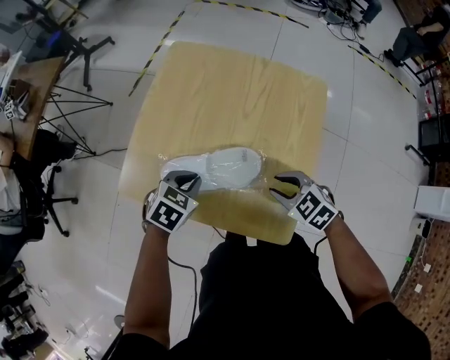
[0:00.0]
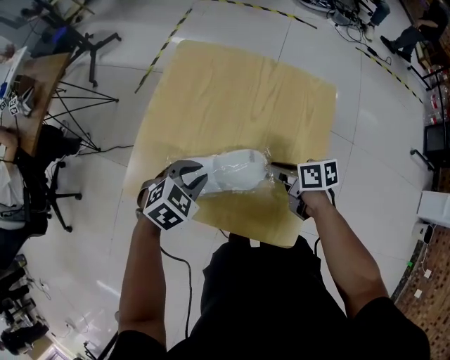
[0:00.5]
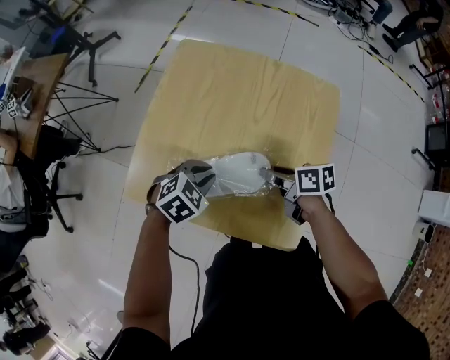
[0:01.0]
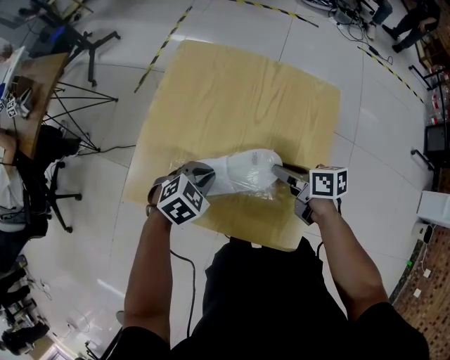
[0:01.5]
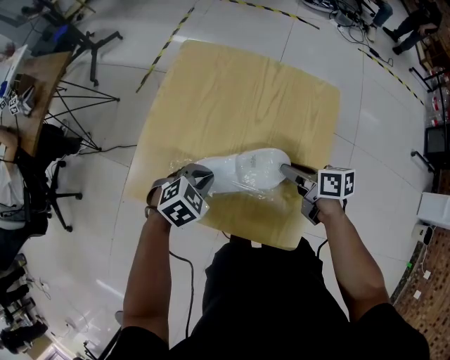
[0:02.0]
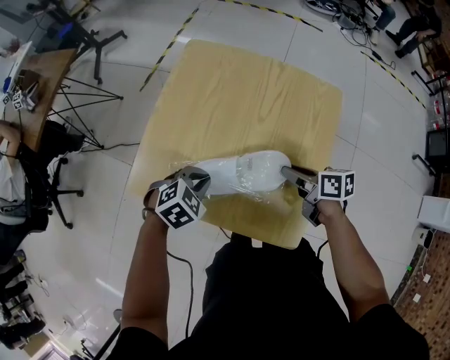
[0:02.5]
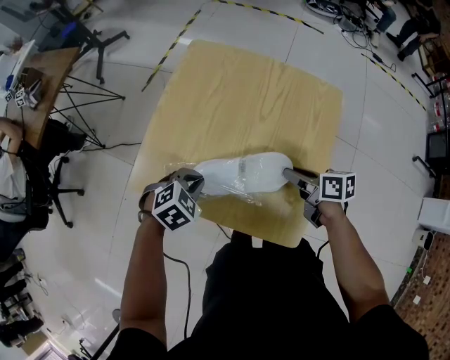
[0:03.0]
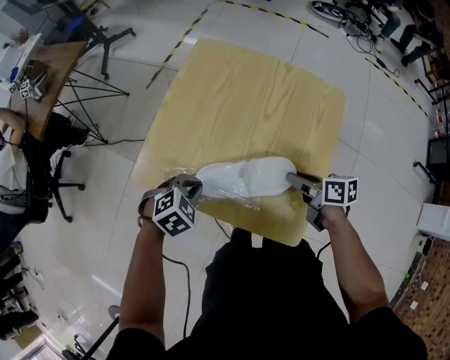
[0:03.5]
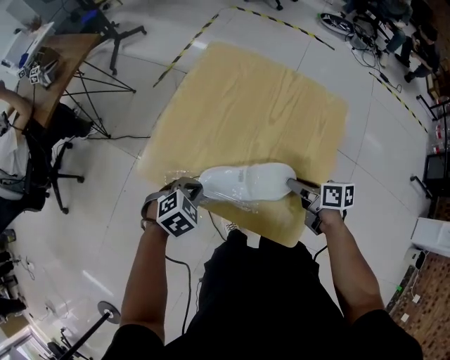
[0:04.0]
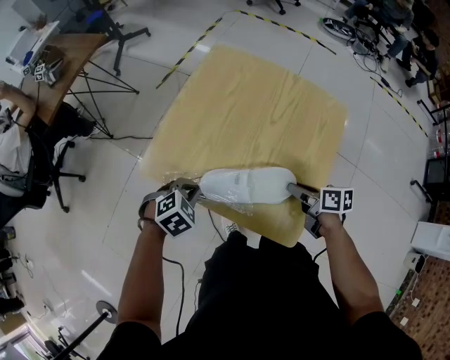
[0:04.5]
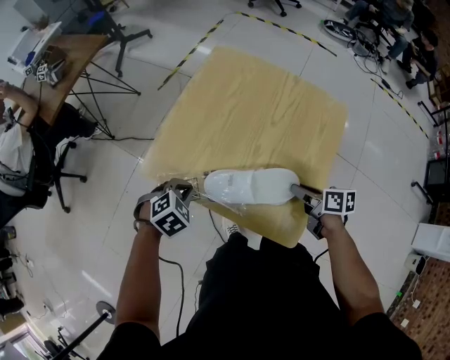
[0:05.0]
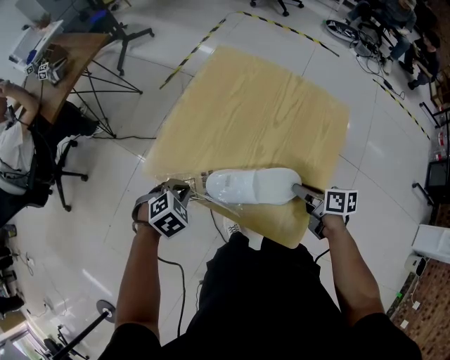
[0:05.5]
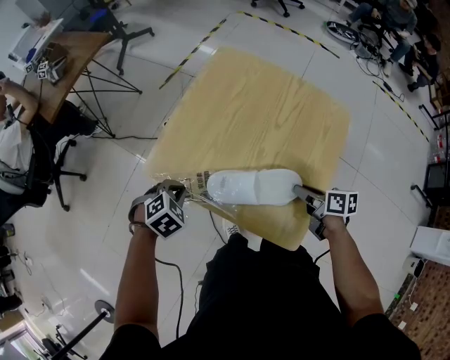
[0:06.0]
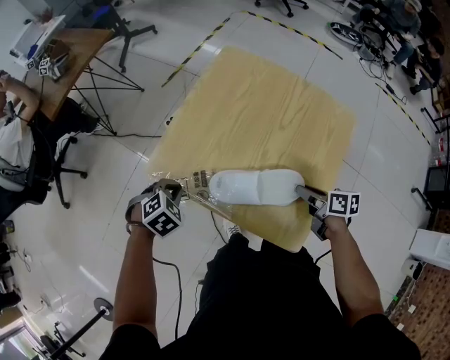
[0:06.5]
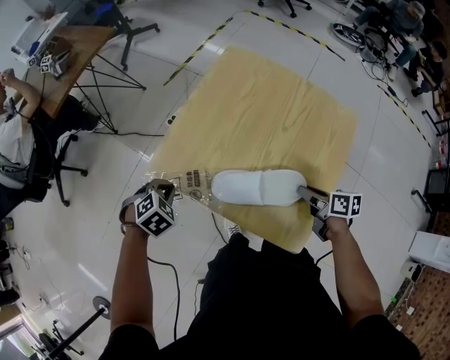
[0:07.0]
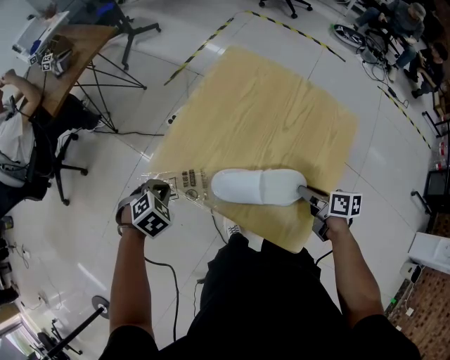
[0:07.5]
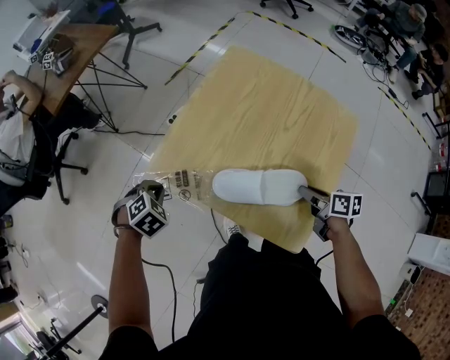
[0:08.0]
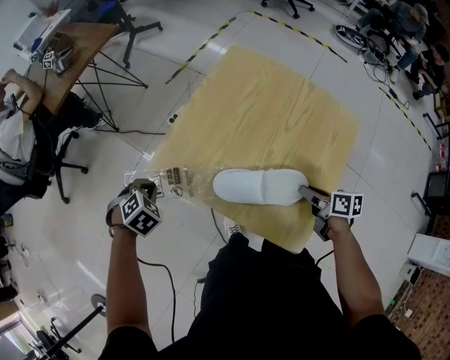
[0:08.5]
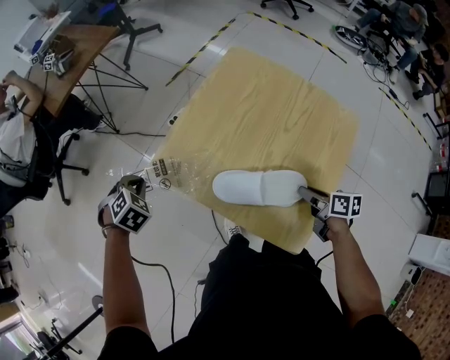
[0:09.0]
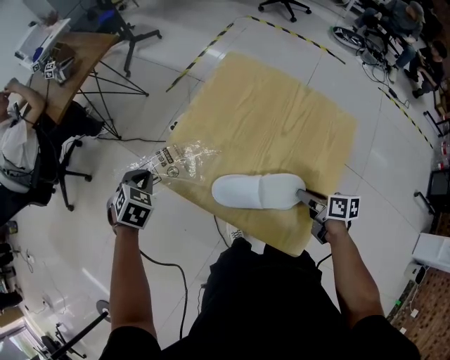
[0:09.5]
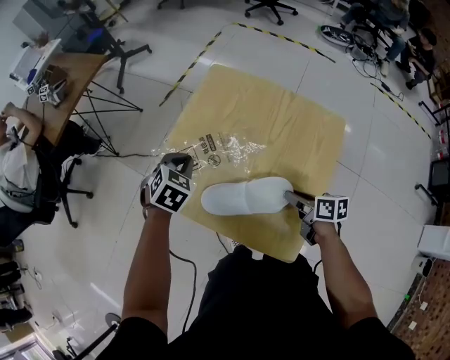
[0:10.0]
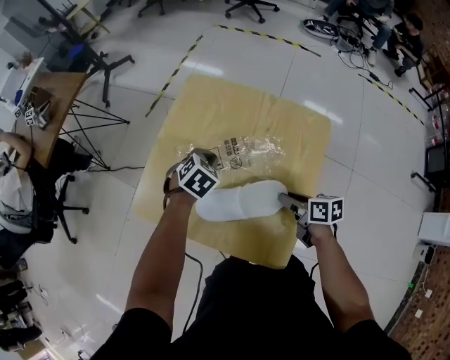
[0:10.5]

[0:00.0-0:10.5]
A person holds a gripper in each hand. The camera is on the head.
0:00.0 to 0:02.0: The right gripper moves forward, about 10 cm, and twists approximately 60 degrees clockwise, seen from behind; the left gripper turns by some 20 degrees.
0:02.0 to 0:04.0: The left gripper goes some 10 cm backward and to the left. Meanwhile the right gripper changes place by roughly 5 cm.
0:04.0 to 0:06.5: The left gripper moves to the left, about 10 cm.
0:06.5 to 0:08.5: The left gripper travels to the left by some 10 cm.
0:08.5 to 0:10.5: The left gripper moves roughly 35 cm, and turns by roughly 20 degrees.

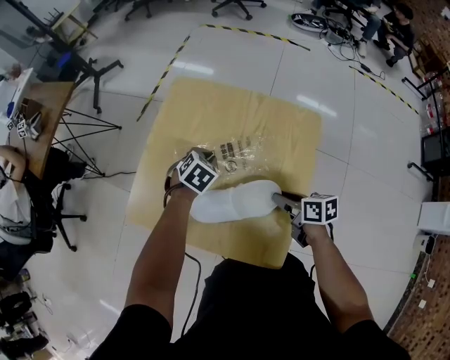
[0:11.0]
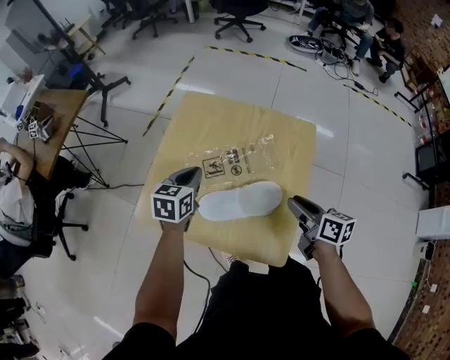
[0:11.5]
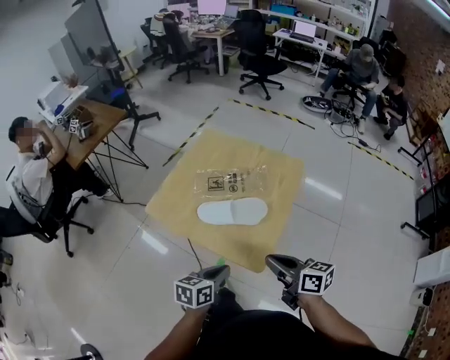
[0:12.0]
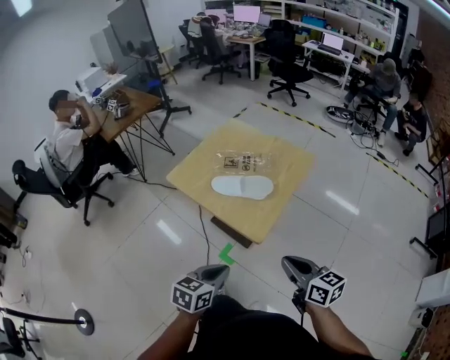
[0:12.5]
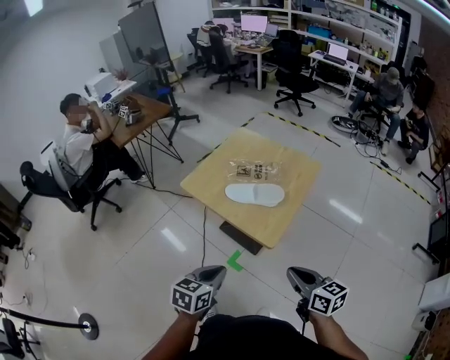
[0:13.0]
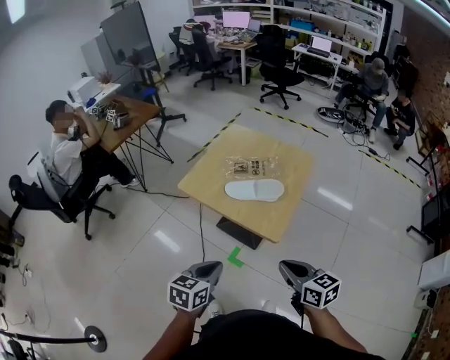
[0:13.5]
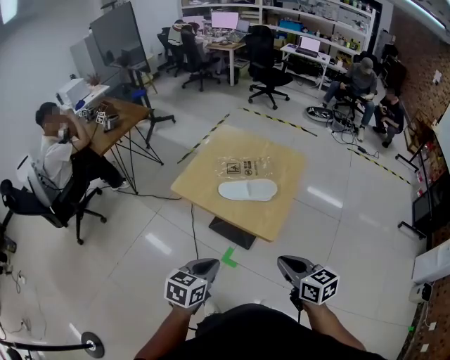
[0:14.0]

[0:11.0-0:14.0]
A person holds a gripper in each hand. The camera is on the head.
0:11.0 to 0:12.5: The left gripper heads backward, covering about 50 cm, and points its fingers approximately 30 degrees further upward, while the right gripper travels backward and upward by roughly 40 cm, turns by approximately 30 degrees, and closes its fingers.
0:12.5 to 0:14.0: The grippers both shift to the left by approximately 10 cm.

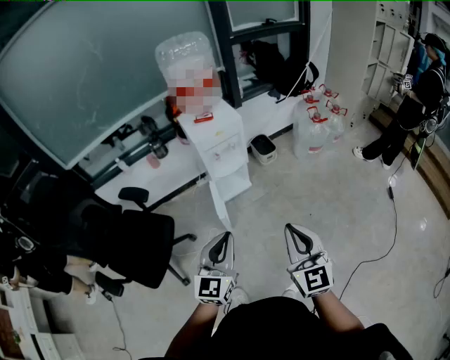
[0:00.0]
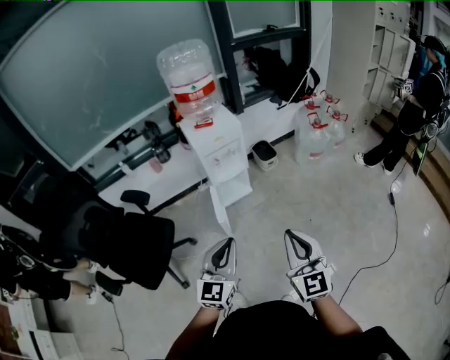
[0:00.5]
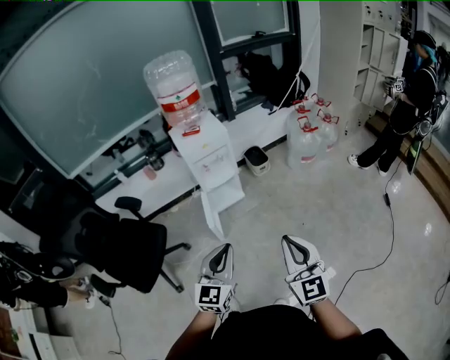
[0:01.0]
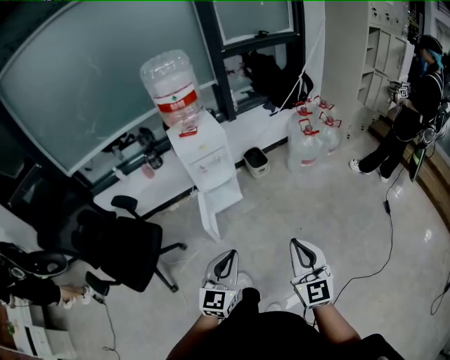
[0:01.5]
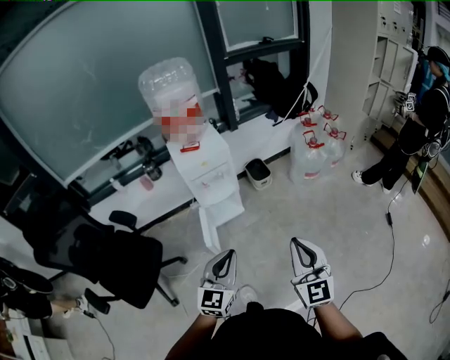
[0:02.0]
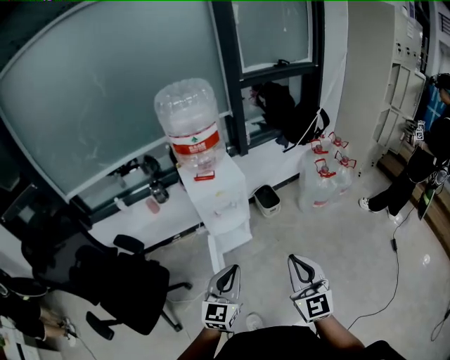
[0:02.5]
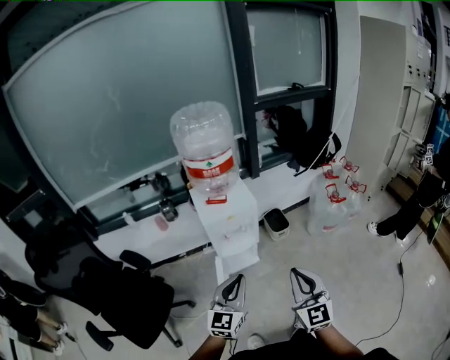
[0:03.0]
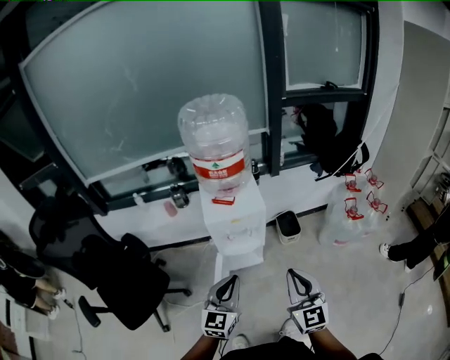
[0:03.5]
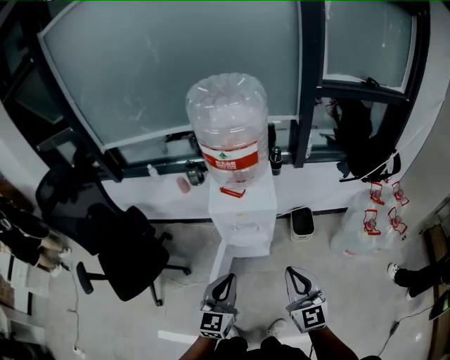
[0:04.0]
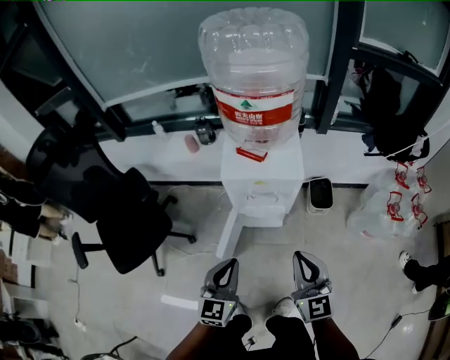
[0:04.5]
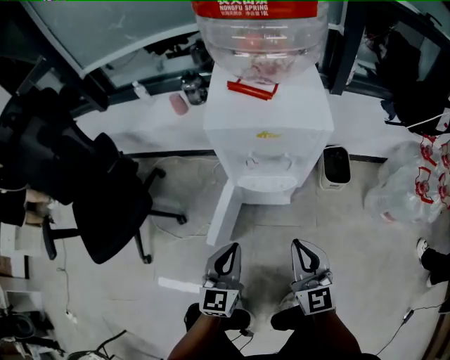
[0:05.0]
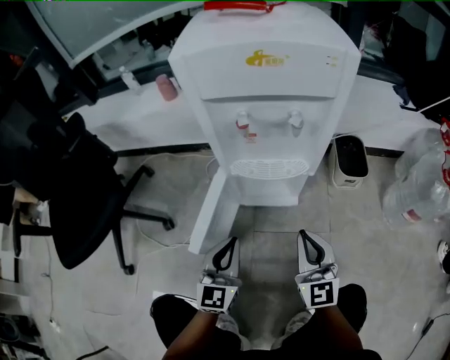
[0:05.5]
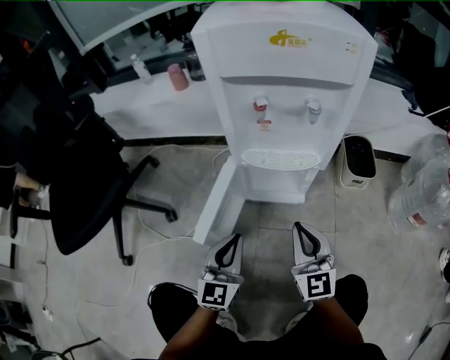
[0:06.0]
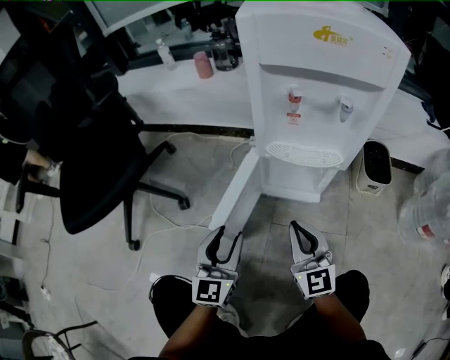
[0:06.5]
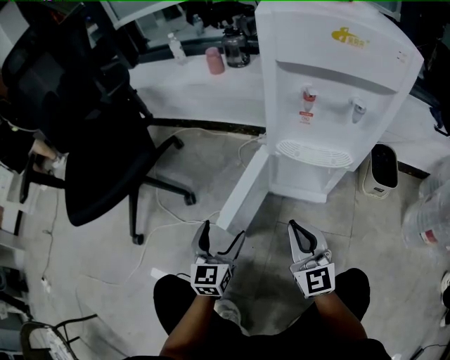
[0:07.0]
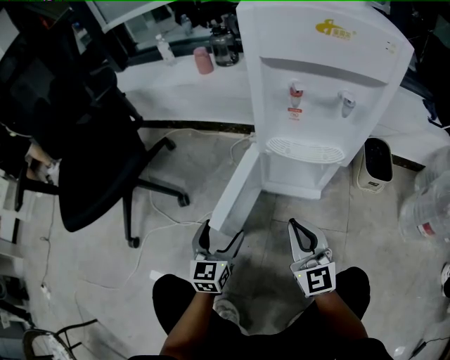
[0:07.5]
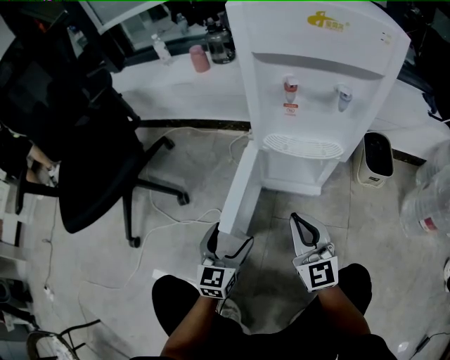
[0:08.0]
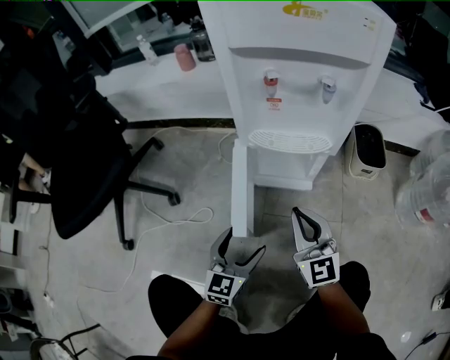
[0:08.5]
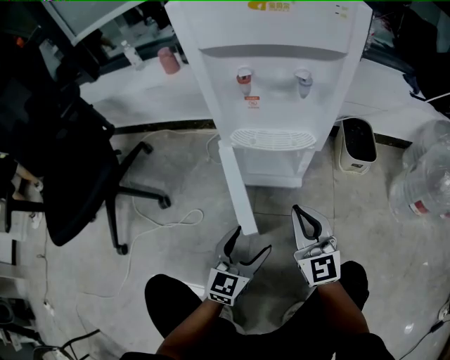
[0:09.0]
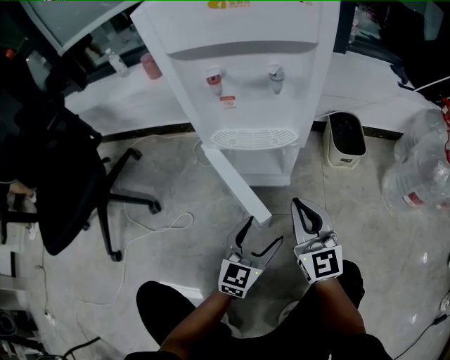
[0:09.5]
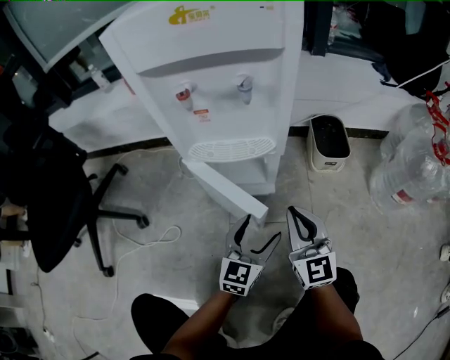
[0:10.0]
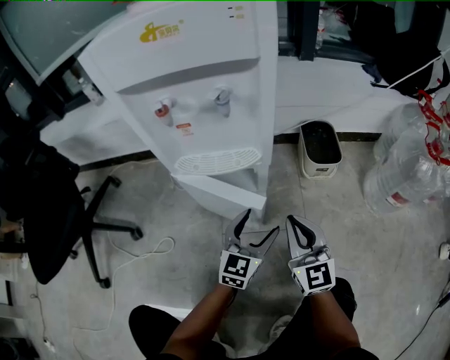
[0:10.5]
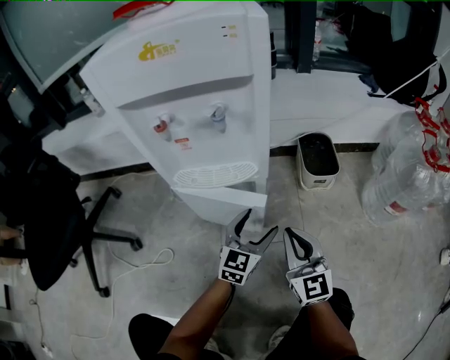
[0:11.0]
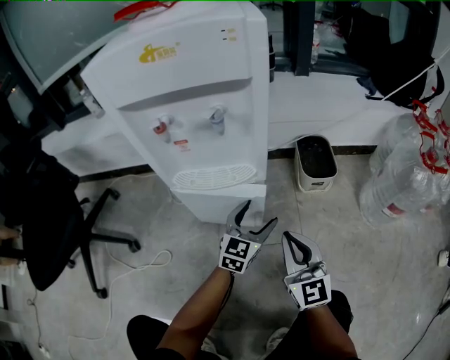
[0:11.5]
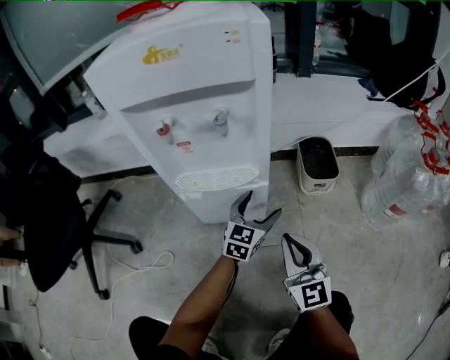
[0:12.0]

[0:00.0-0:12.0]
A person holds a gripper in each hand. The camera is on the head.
0:00.0 to 0:02.0: Both grippers move to the right and forward, some 15 cm.
0:02.0 to 0:04.0: The left gripper moves some 25 cm, and rotates approximately 30 degrees; the right gripper changes place by approximately 30 cm, and turns by roughly 30 degrees.
0:04.0 to 0:06.0: The grippers both shift downward by roughly 50 cm.
0:06.0 to 0:08.0: The right gripper travels to the left by about 5 cm, while the left gripper heads downward and to the left, covering approximately 10 cm, and opens up.
0:08.0 to 0:10.0: The left gripper heads to the right, covering approximately 25 cm, and changes its angle by approximately 20 degrees. The right gripper goes about 15 cm to the right.
0:10.0 to 0:12.0: The left gripper goes roughly 15 cm forward.

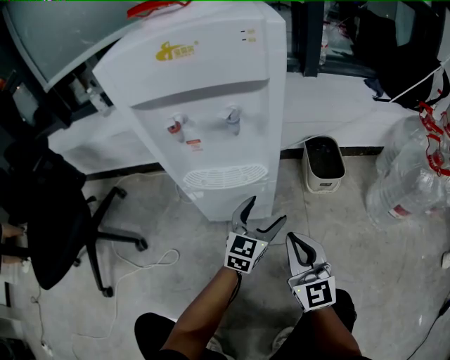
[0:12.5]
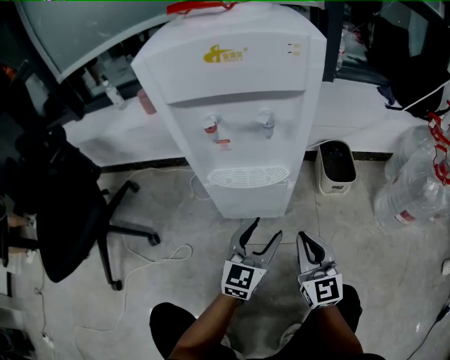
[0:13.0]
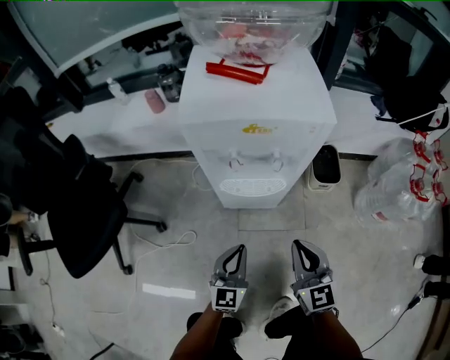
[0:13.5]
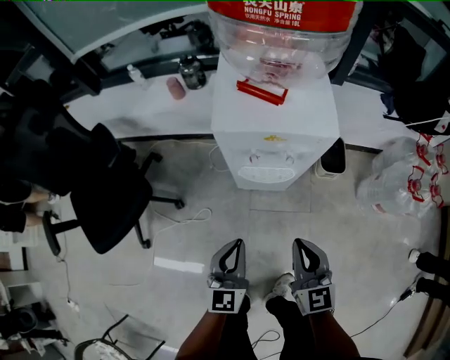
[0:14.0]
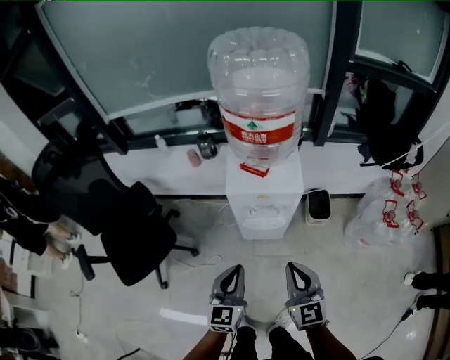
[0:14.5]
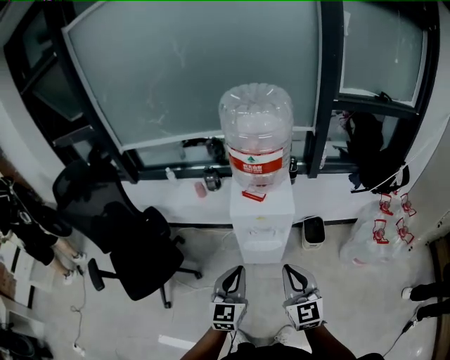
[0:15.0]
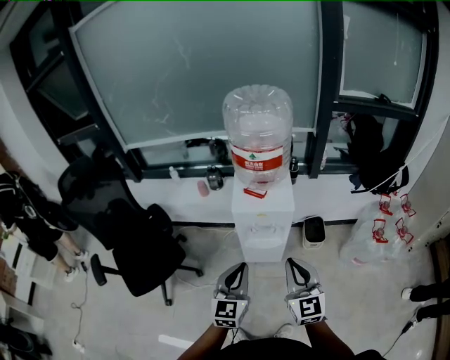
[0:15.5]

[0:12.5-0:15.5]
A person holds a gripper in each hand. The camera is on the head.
0:12.5 to 0:14.0: The right gripper is displaced upward by about 30 cm. Meanwhile the left gripper travels upward, to the left and backward by approximately 40 cm, changes its angle by some 30 degrees, and closes up.
0:14.0 to 0:15.5: The two grippers go some 25 cm upward.
